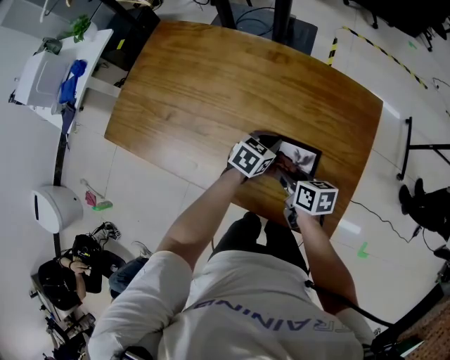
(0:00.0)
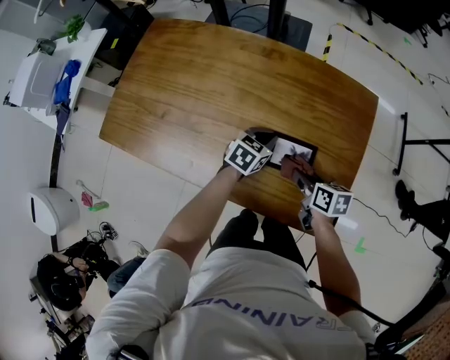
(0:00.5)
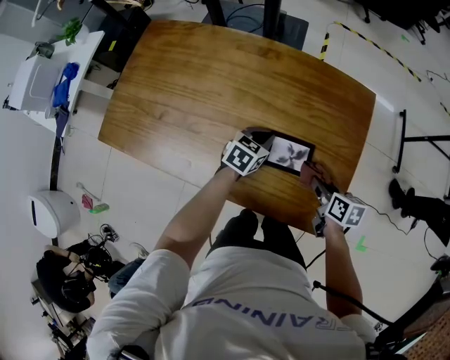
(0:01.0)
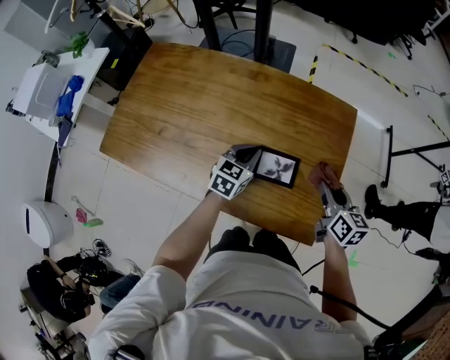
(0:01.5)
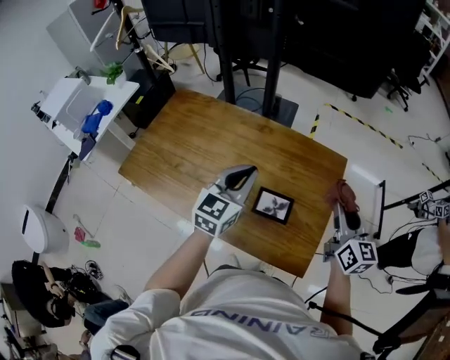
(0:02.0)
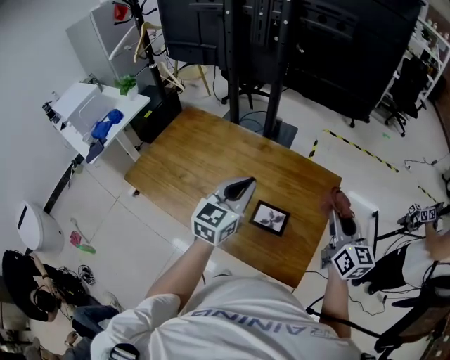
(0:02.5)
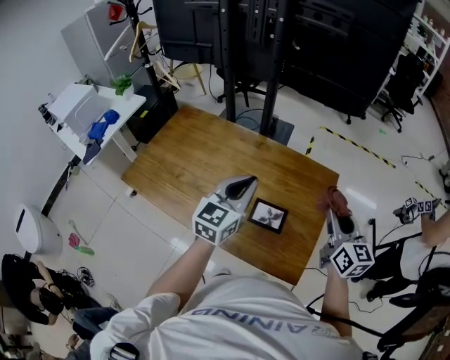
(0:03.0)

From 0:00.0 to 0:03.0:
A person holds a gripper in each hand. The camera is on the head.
From 0:00.0 to 0:01.5: The right gripper shifts some 20 cm to the right and upward, and rotates roughly 30 degrees, while the left gripper moves upward, about 5 cm.
From 0:01.5 to 0:03.0: Both grippers travel together upward, approximately 20 cm. The right gripper changes its angle by some 30 degrees, while the left gripper changes its angle by roughly 30 degrees.

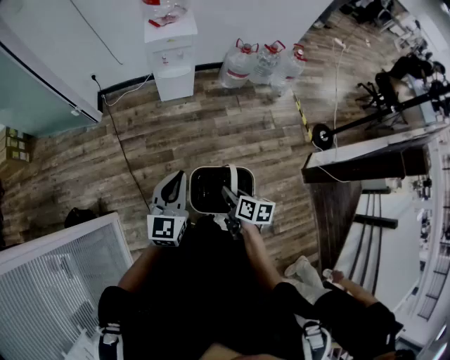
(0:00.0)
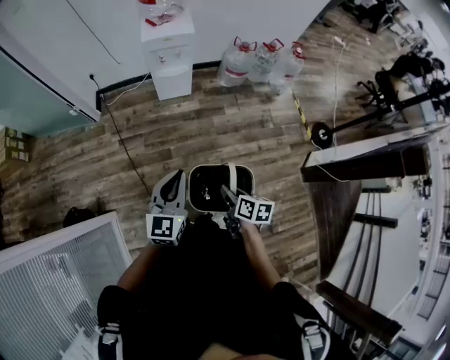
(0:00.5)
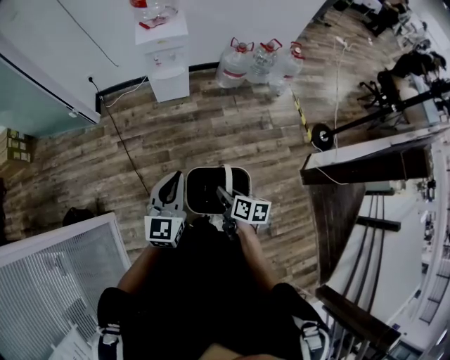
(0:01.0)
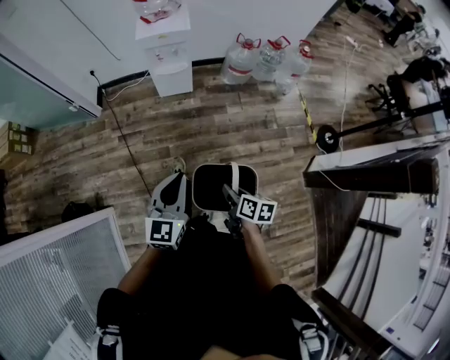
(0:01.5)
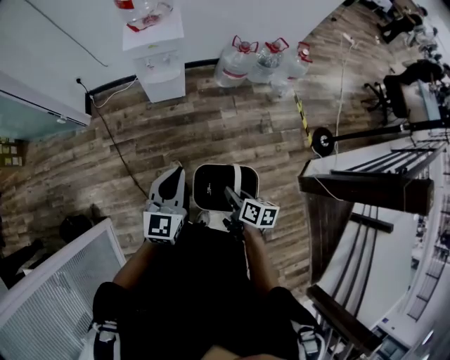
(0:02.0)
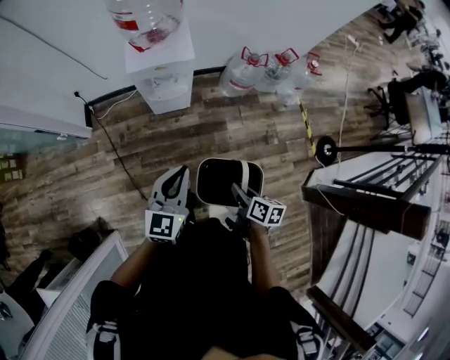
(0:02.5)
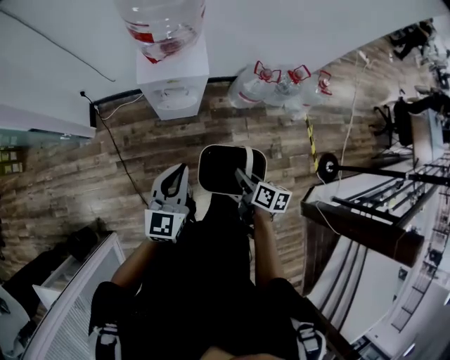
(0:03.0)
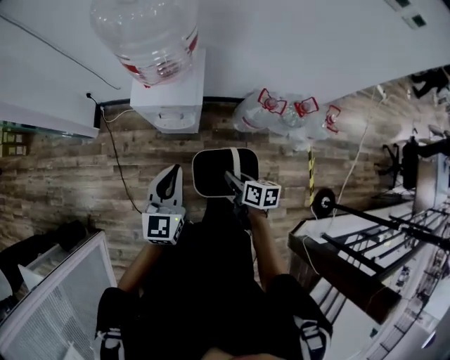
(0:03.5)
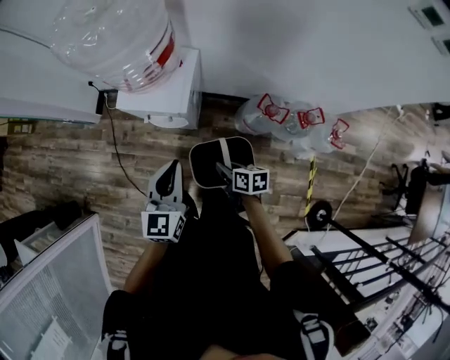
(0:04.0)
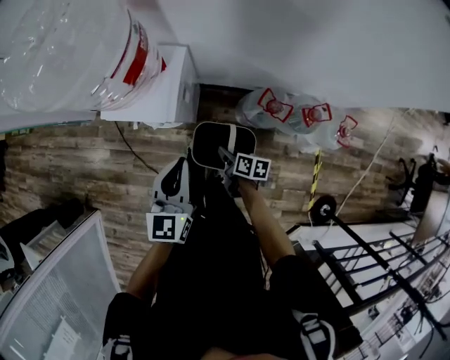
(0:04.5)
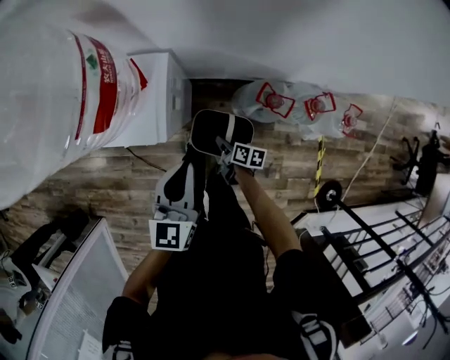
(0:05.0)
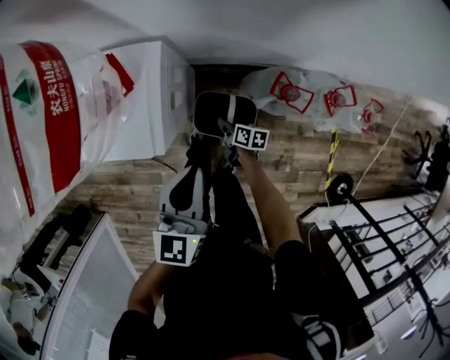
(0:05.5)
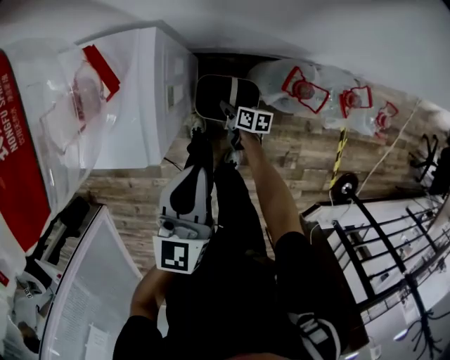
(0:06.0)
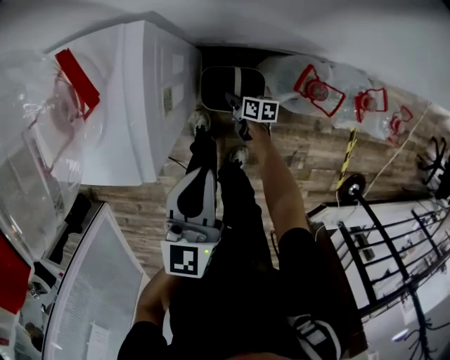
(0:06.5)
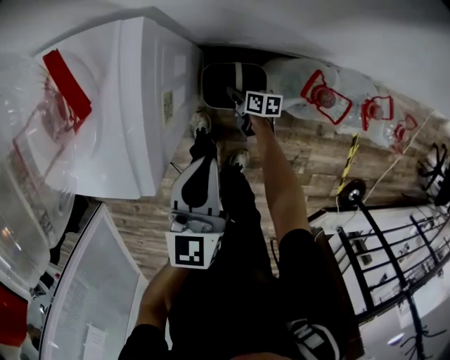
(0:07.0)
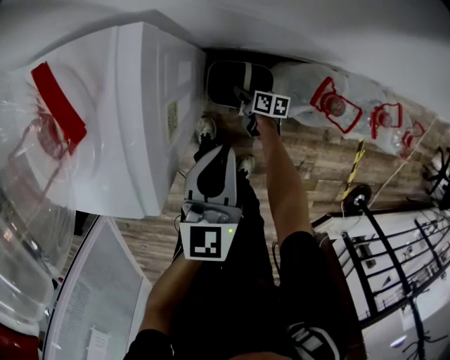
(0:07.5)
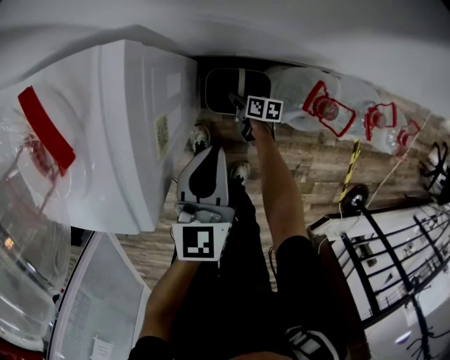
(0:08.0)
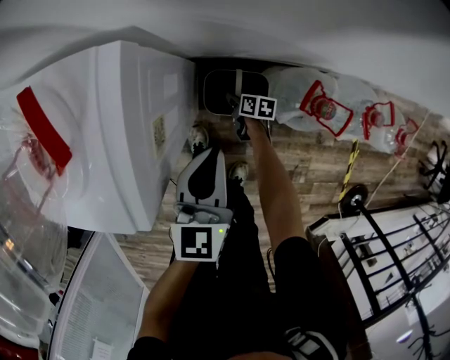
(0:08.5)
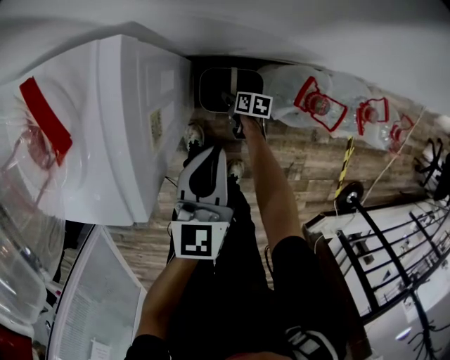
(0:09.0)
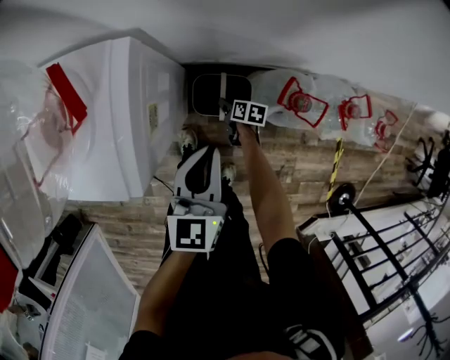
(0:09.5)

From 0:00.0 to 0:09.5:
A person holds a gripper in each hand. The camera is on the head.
From 0:00.0 to 0:02.0: Both grippers move forward and to the right, roughly 15 cm.
From 0:02.0 to 0:04.0: The two grippers travel together, about 50 cm. The right gripper turns by some 30 degrees; the left gripper rotates some 30 degrees.
From 0:04.0 to 0:05.5: The right gripper shifts approximately 35 cm downward and forward; the left gripper travels downward, forward and to the right by about 20 cm.
From 0:05.5 to 0:07.5: The right gripper is displaced downward and forward by approximately 20 cm; the left gripper heads downward, covering approximately 20 cm.
From 0:07.5 to 0:09.5: The right gripper ends up approximately 5 cm from where it was, and opens.

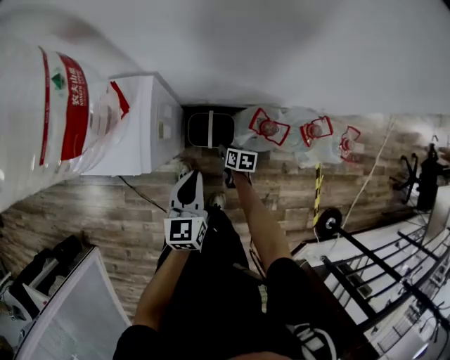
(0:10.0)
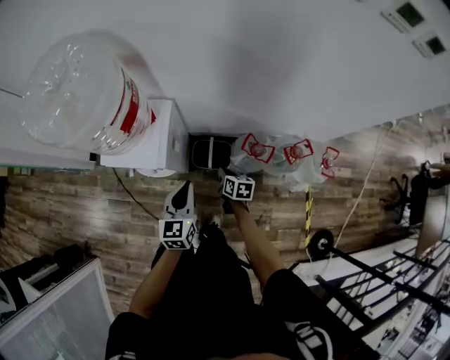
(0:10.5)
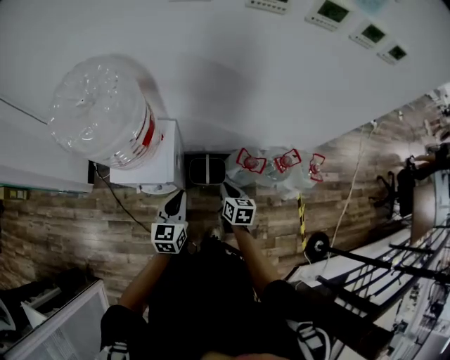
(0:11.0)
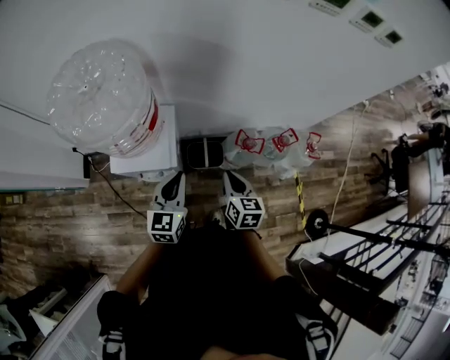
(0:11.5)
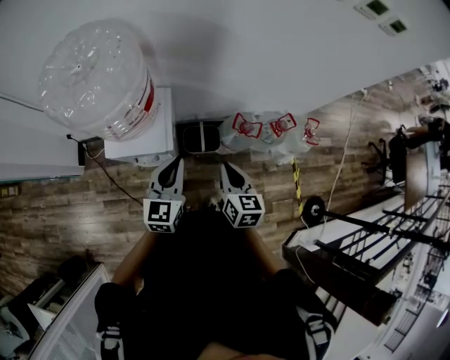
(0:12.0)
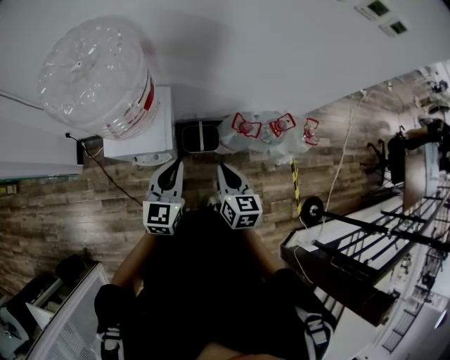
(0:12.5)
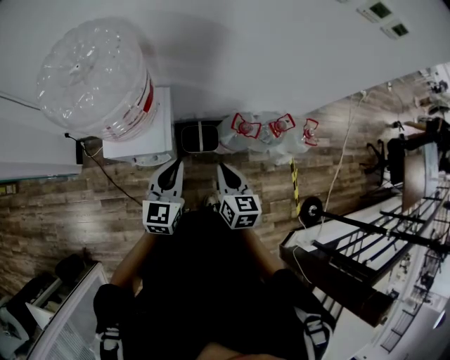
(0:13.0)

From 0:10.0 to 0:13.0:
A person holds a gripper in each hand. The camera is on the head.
From 0:10.0 to 0:11.5: The left gripper moves upward and to the left, about 25 cm; the right gripper is displaced upward by some 40 cm, and rotates about 30 degrees.
From 0:11.5 to 0:13.0: There are only small adjustments of the grippers.

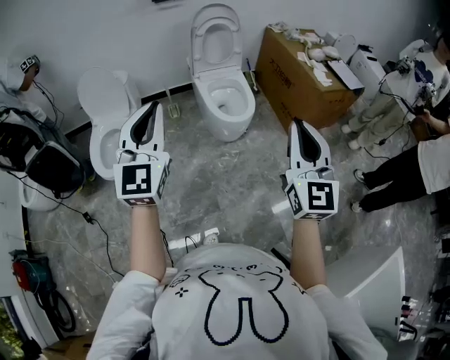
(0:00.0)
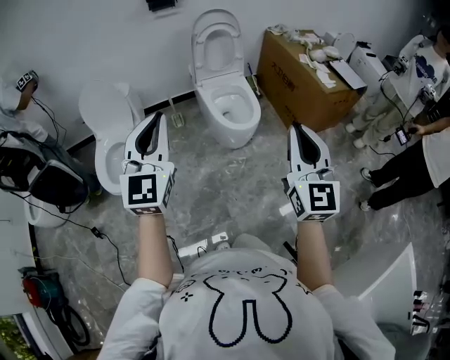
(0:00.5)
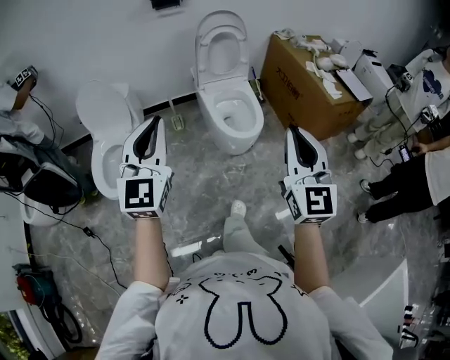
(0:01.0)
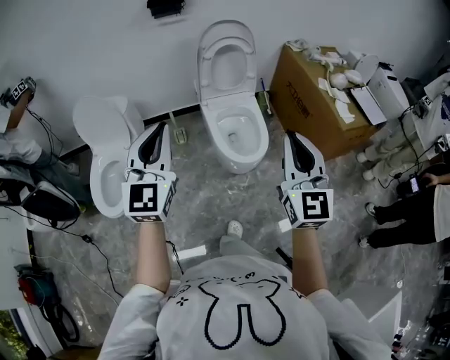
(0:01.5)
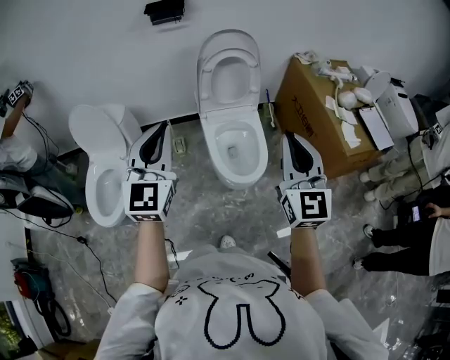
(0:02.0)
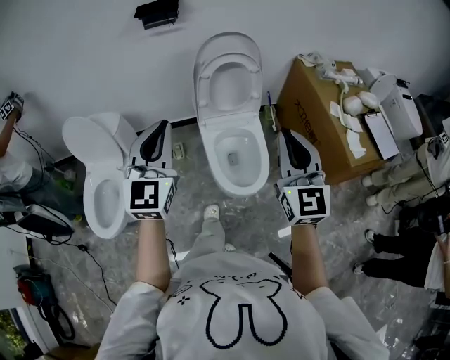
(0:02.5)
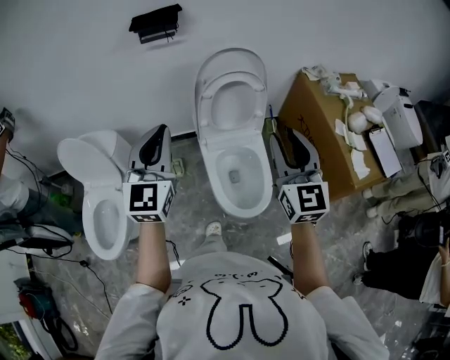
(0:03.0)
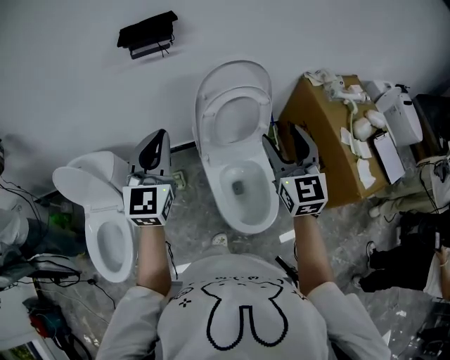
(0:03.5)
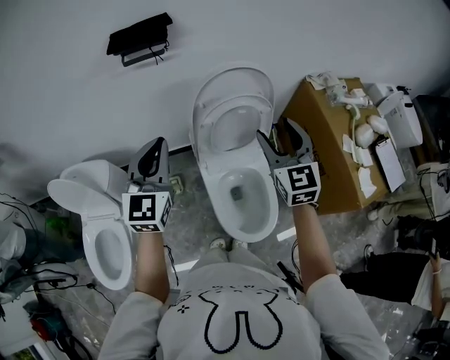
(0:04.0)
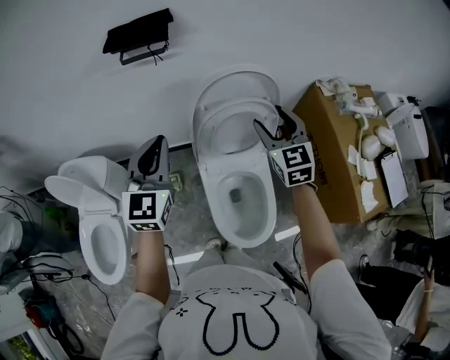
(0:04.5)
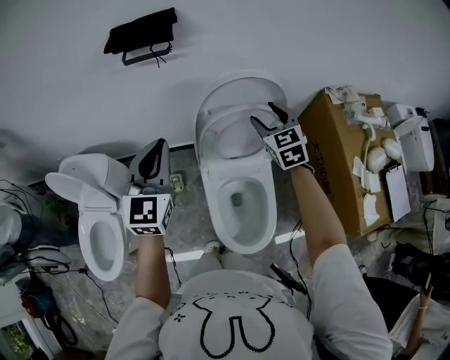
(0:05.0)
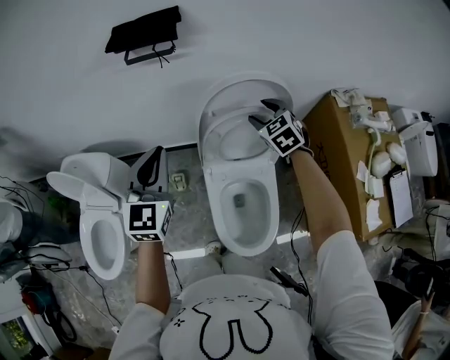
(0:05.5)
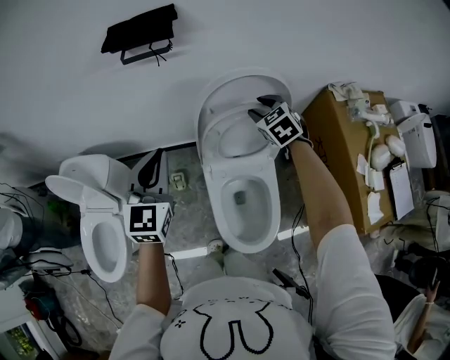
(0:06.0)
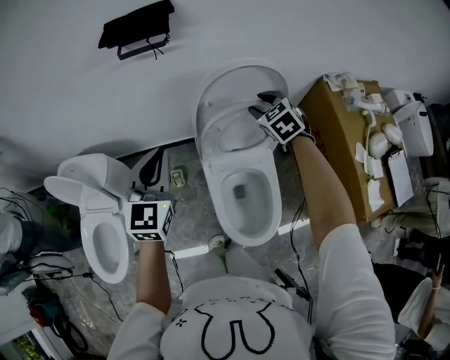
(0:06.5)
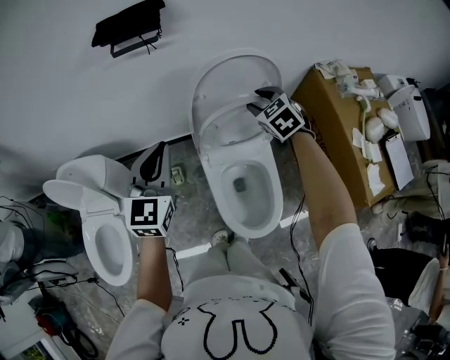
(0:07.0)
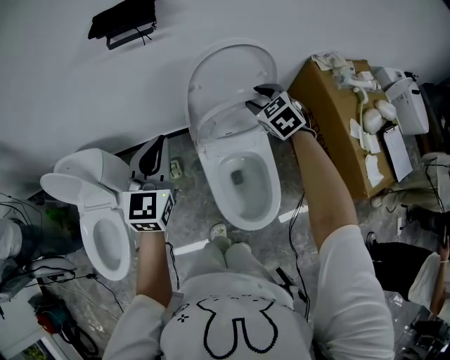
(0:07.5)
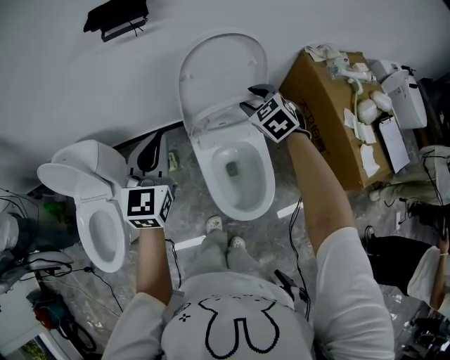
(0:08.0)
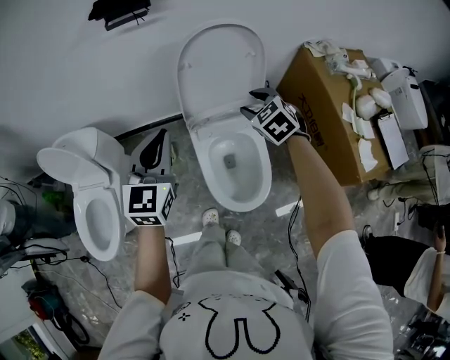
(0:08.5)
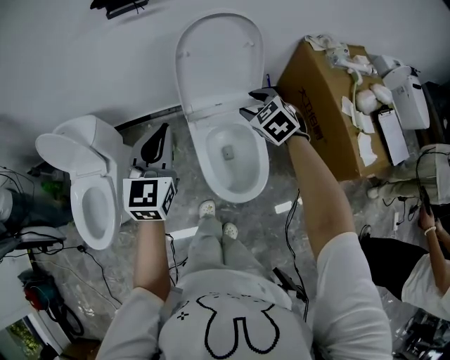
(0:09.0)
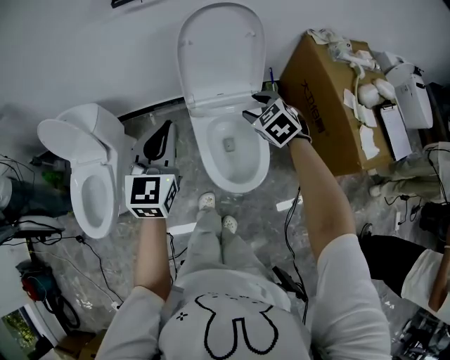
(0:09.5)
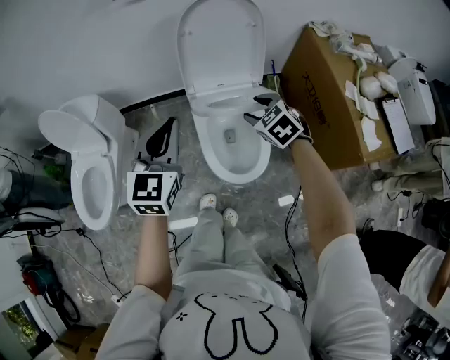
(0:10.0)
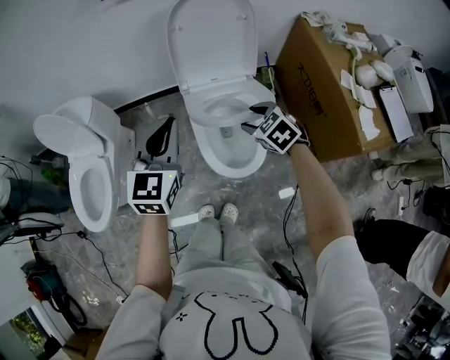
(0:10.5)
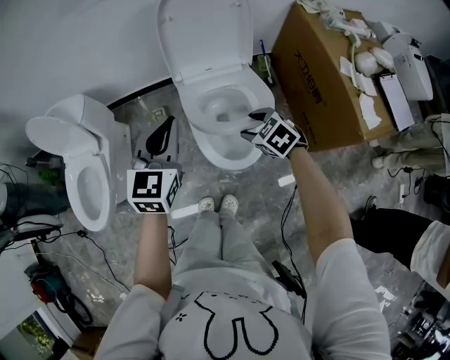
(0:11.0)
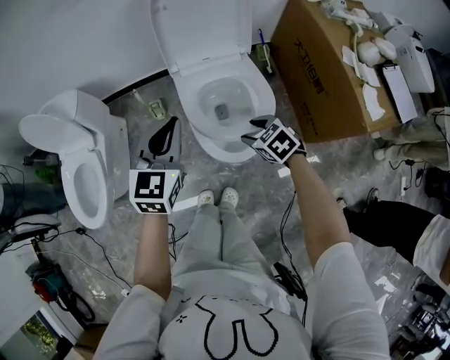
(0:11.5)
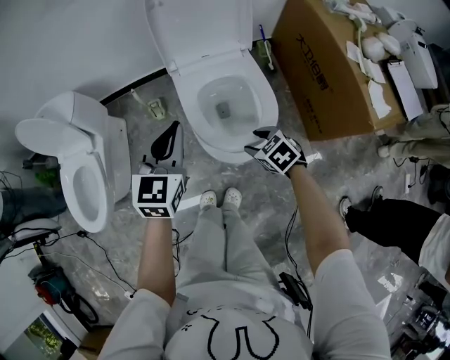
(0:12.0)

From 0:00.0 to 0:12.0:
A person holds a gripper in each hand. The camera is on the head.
From 0:00.0 to 0:02.0: Both grippers travel together forward, approximately 35 cm.
From 0:02.0 to 0:04.0: Both grippers travel together forward, approximately 40 cm. The right gripper opens up.
From 0:04.0 to 0:06.0: The left gripper is displaced downward by roughly 5 cm, while the right gripper goes approximately 25 cm forward and downward, and tilts its fingers approximately 40 degrees downward.
From 0:06.0 to 0:08.0: The right gripper shifts approximately 15 cm backward, while the left gripper goes about 10 cm backward.
From 0:08.0 to 0:10.0: Both grippers travel together backward, approximately 15 cm.
From 0:10.0 to 0:12.0: The right gripper is displaced downward and backward by approximately 20 cm, and changes its angle by roughly 20 degrees, while the left gripper is displaced downward by some 10 cm.
